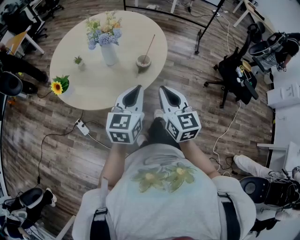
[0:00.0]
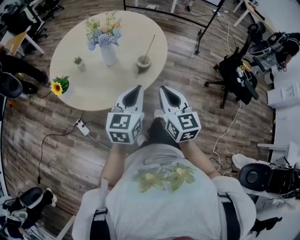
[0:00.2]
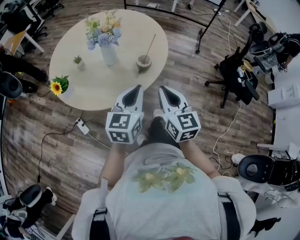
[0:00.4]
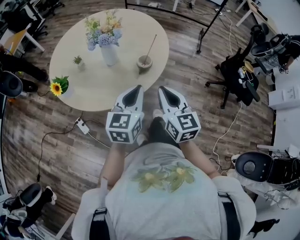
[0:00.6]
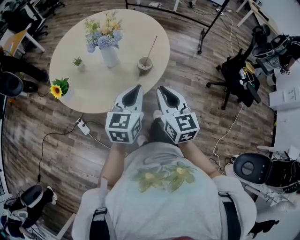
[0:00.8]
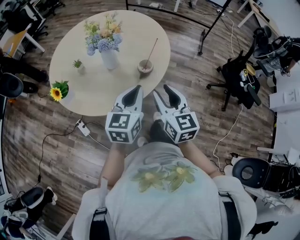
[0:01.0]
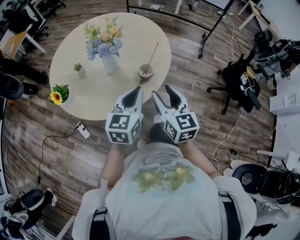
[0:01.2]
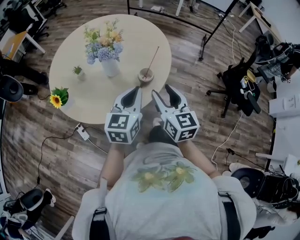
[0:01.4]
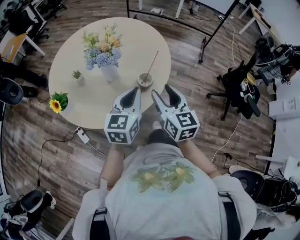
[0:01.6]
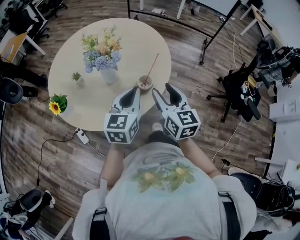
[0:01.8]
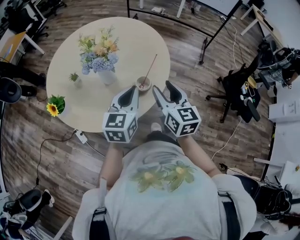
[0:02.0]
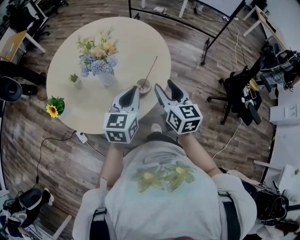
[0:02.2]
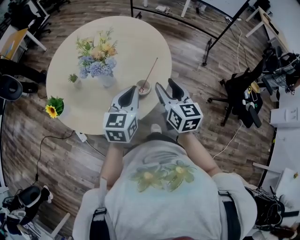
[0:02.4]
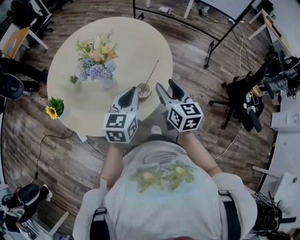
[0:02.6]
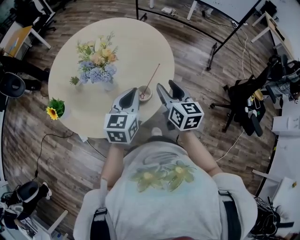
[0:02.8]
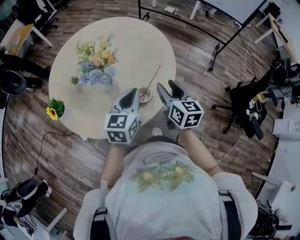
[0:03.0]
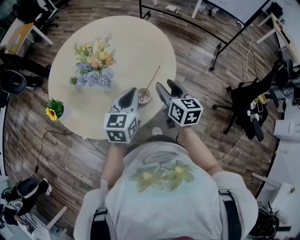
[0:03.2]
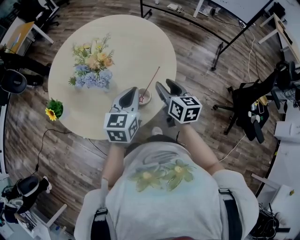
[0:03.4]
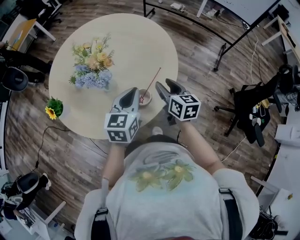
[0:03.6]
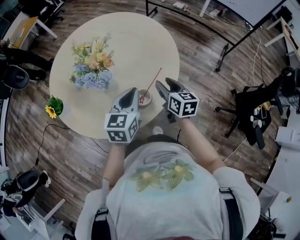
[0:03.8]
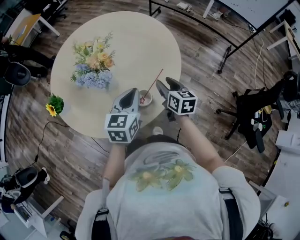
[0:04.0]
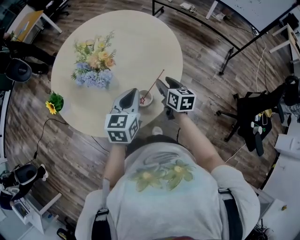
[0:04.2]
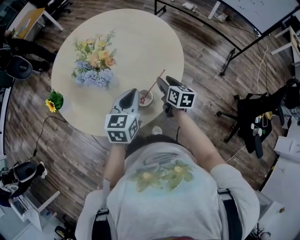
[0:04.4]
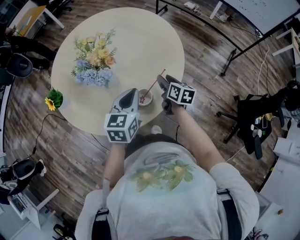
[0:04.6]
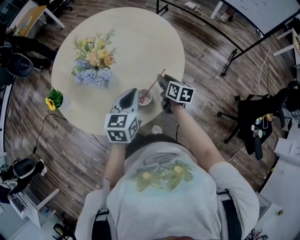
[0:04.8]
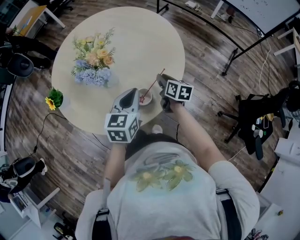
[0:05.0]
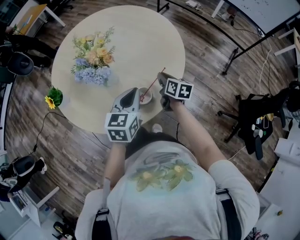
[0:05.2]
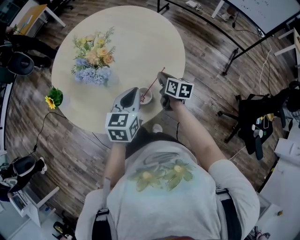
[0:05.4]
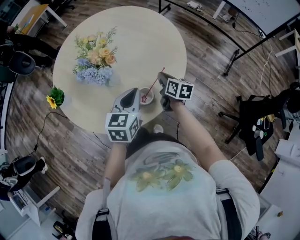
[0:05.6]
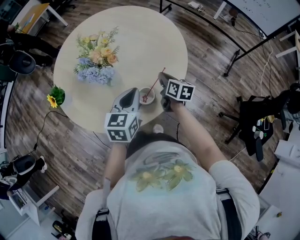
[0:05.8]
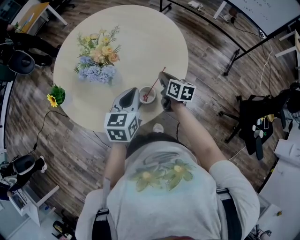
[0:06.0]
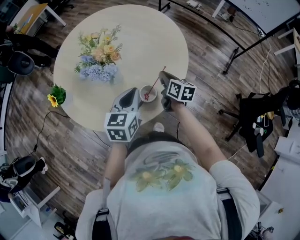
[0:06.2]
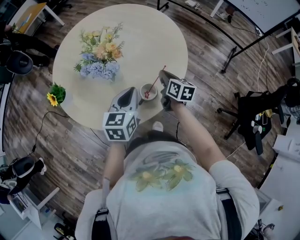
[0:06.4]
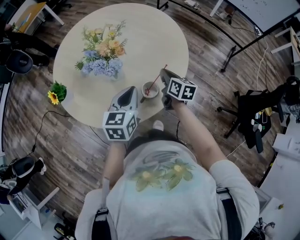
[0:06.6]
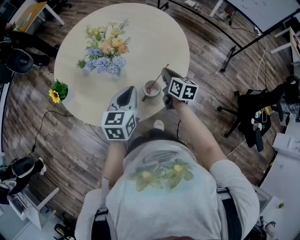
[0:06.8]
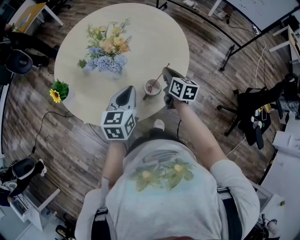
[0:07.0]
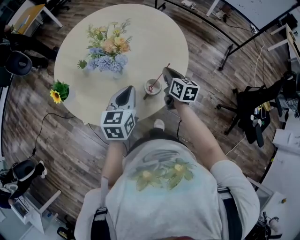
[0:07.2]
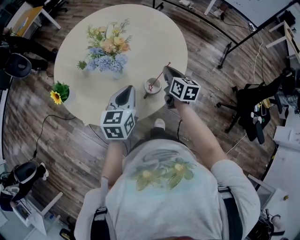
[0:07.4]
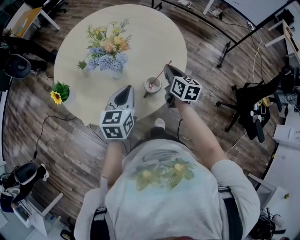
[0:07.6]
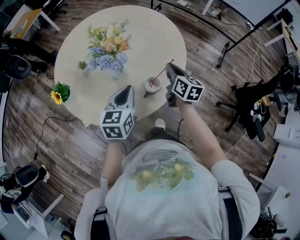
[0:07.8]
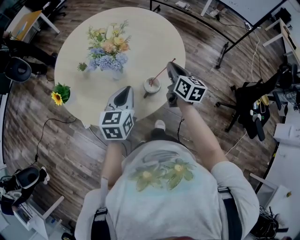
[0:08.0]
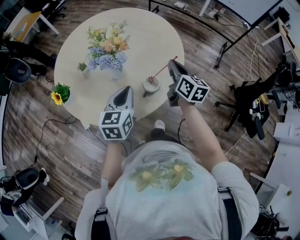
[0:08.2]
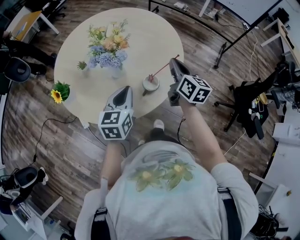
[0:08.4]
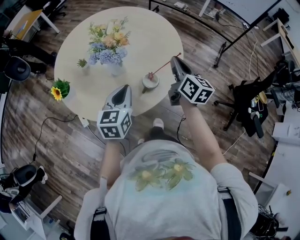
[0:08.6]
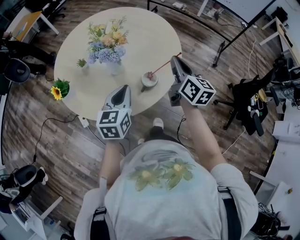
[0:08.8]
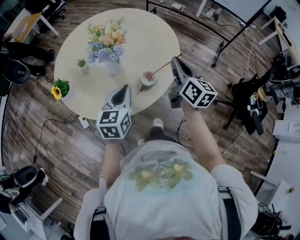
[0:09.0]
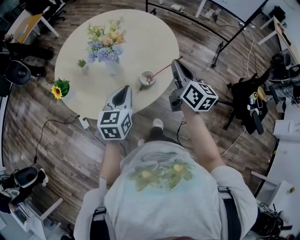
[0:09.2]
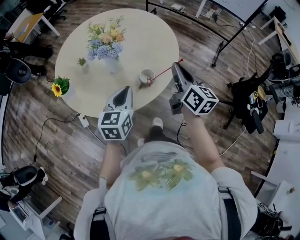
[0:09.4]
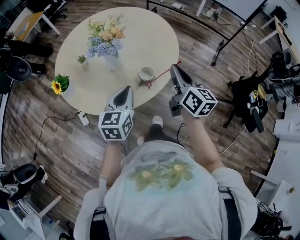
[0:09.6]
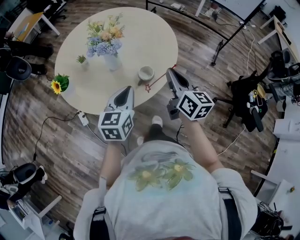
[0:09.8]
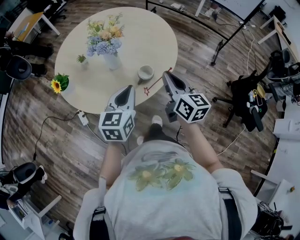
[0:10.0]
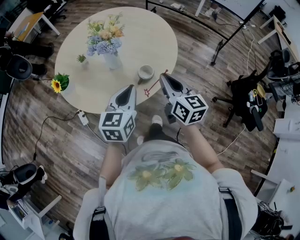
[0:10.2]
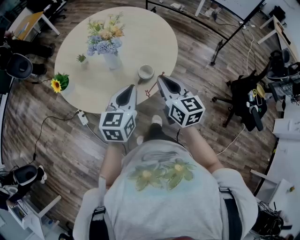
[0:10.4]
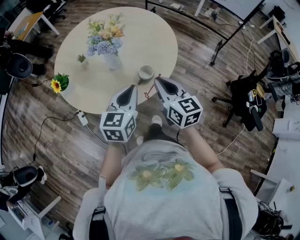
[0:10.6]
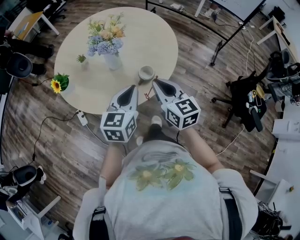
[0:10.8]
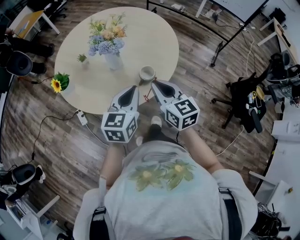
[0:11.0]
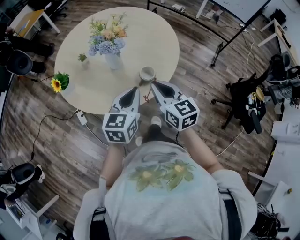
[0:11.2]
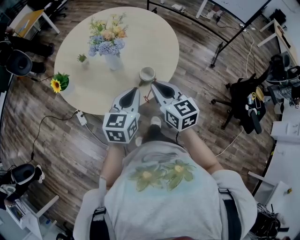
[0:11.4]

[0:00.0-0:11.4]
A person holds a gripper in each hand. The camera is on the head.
0:00.0 to 0:01.4: The grippers both shift forward by about 10 cm. The right gripper opens.
0:01.4 to 0:02.8: Both grippers move forward, approximately 15 cm.
0:02.8 to 0:04.2: The right gripper travels downward and forward by about 15 cm. The left gripper moves about 5 cm.
0:04.2 to 0:05.6: The right gripper ends up roughly 5 cm from where it was, and closes its fingers.
0:05.6 to 0:07.2: The right gripper travels upward by about 5 cm. The left gripper goes about 10 cm to the left.
0:07.2 to 0:08.6: The right gripper goes roughly 15 cm upward.
0:08.6 to 0:10.0: The left gripper is displaced backward by some 5 cm. The right gripper goes approximately 15 cm backward.
0:10.0 to 0:11.4: The right gripper goes roughly 5 cm to the left.

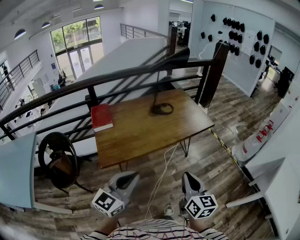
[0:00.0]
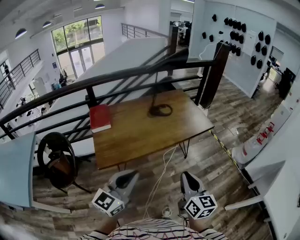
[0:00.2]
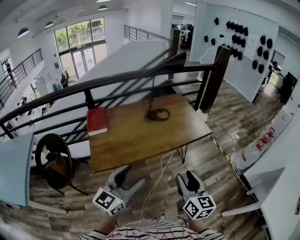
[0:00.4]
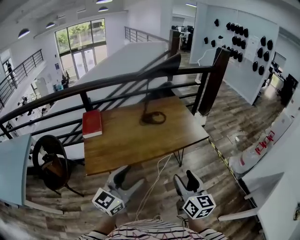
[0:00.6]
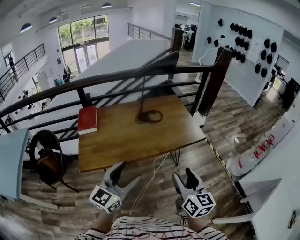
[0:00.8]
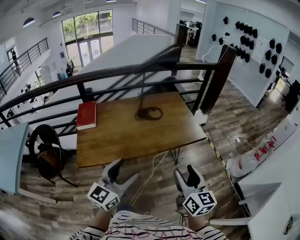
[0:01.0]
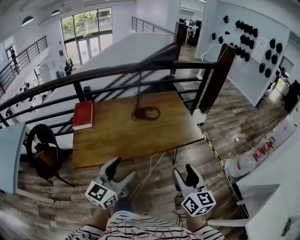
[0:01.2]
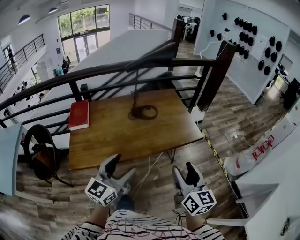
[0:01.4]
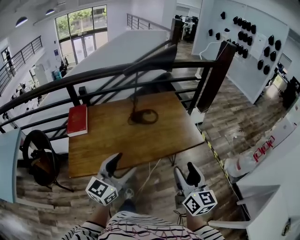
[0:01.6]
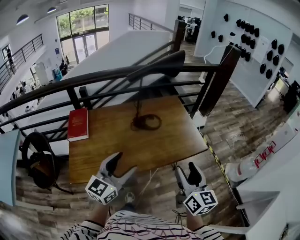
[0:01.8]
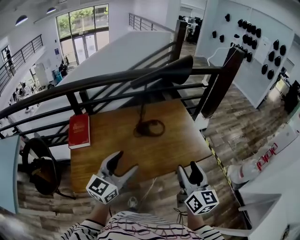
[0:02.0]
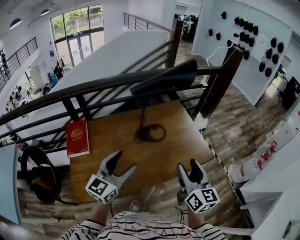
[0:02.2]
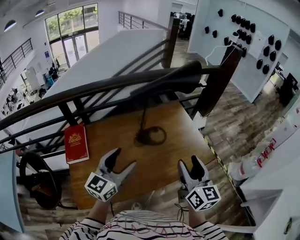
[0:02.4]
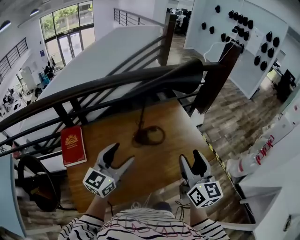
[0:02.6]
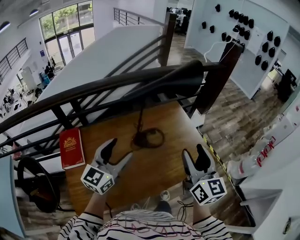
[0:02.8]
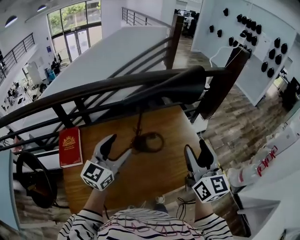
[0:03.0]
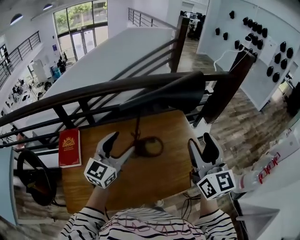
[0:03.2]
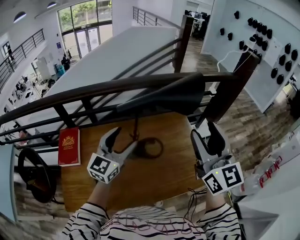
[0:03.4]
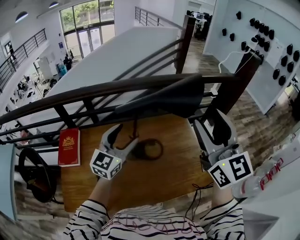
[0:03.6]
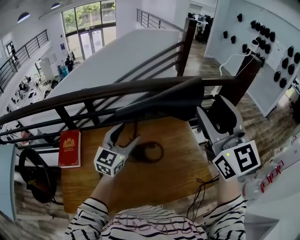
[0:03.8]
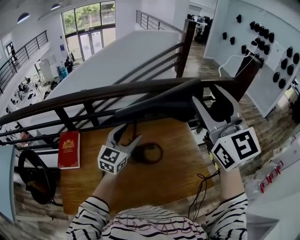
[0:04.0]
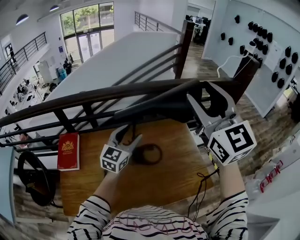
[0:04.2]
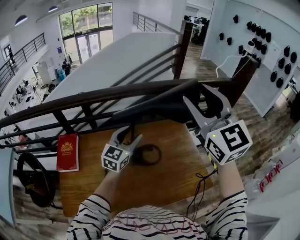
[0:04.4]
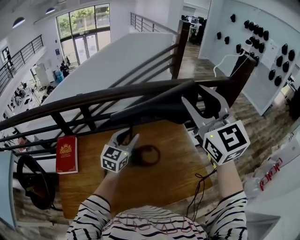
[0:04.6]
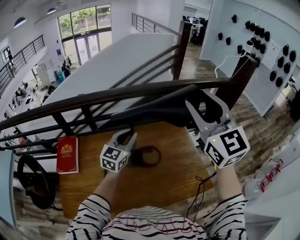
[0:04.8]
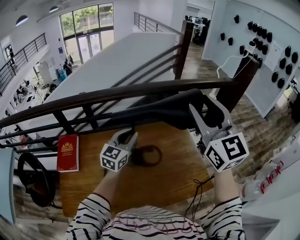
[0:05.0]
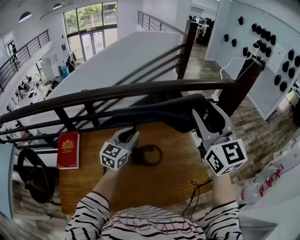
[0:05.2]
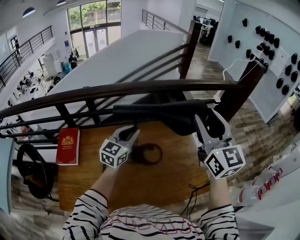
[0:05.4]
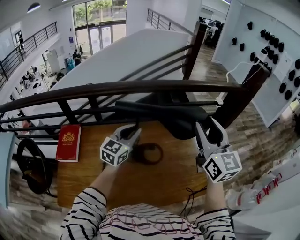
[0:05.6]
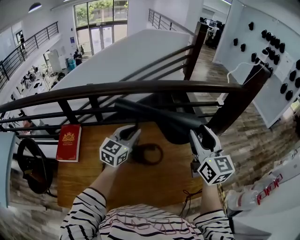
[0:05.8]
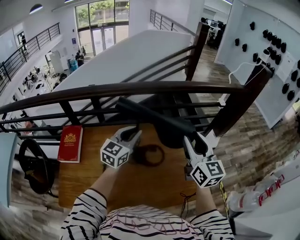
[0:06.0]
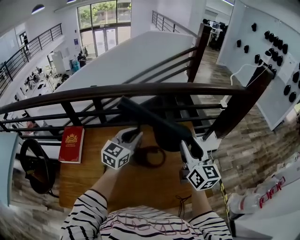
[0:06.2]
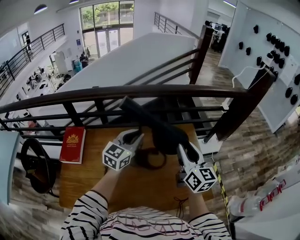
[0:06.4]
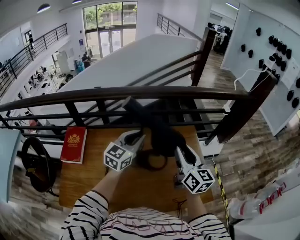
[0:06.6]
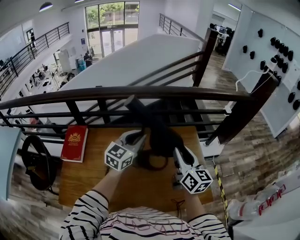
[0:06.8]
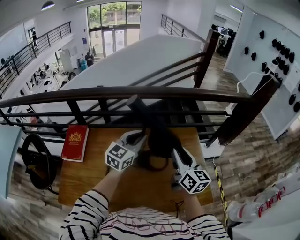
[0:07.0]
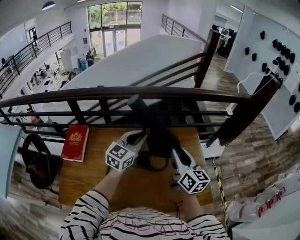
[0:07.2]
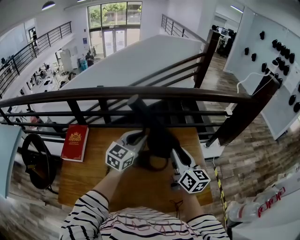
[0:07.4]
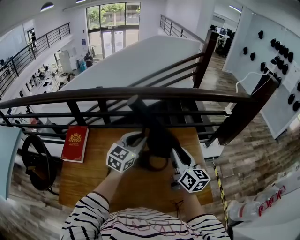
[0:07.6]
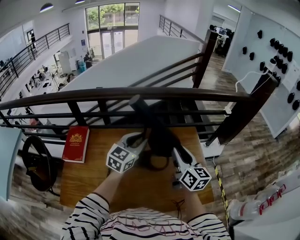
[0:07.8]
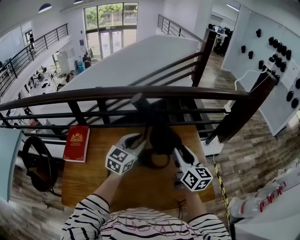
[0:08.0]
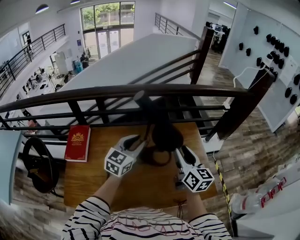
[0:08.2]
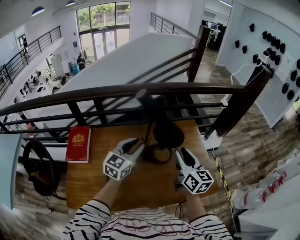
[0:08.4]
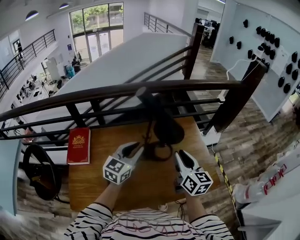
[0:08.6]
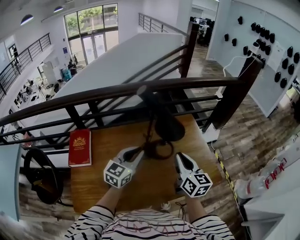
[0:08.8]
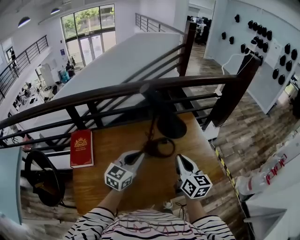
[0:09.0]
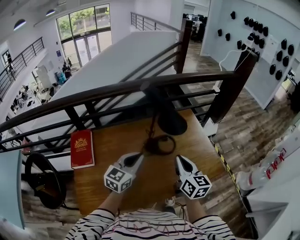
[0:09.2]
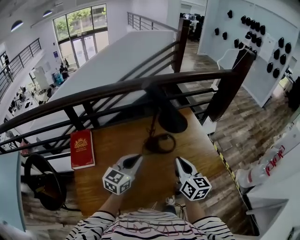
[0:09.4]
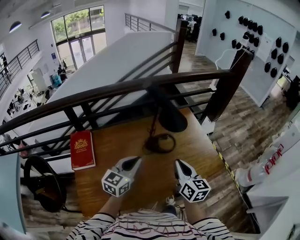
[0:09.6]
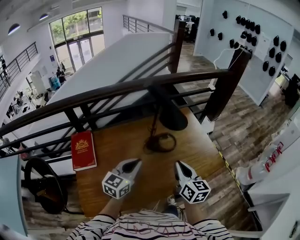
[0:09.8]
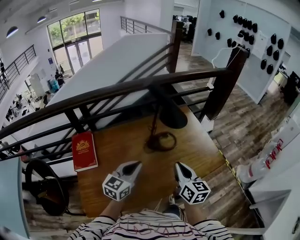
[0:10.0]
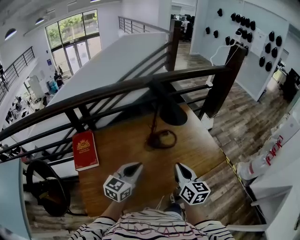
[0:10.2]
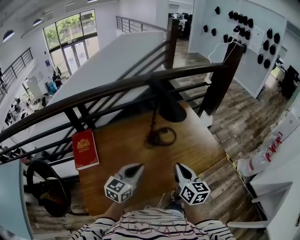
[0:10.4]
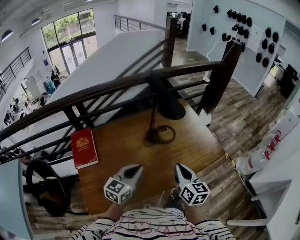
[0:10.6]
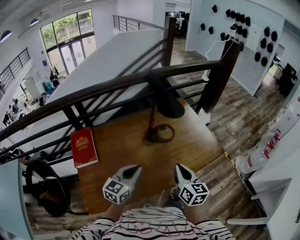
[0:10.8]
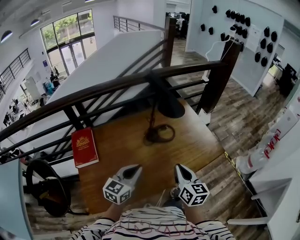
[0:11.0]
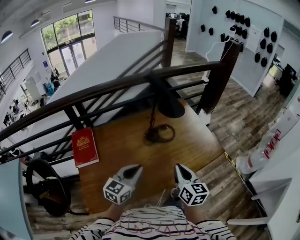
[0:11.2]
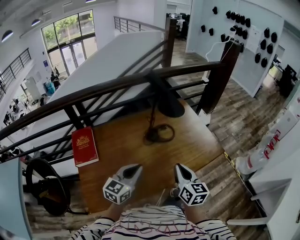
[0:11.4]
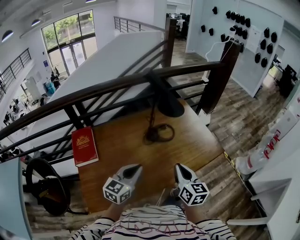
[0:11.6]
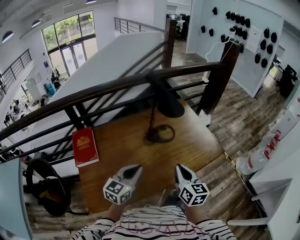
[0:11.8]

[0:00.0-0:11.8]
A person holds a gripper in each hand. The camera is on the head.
0:00.0 to 0:01.4: Both grippers travel together forward and to the right, about 30 cm. The left gripper opens up, while the right gripper opens its fingers.
0:01.4 to 0:03.0: The pair of grippers is taken forward, some 40 cm.
0:03.0 to 0:04.4: The left gripper shifts approximately 20 cm forward and to the right; the right gripper shifts about 25 cm upward and forward, and turns by approximately 30 degrees.
0:04.4 to 0:06.0: The right gripper heads downward, covering about 20 cm, and changes its angle by about 30 degrees. The left gripper closes up.
0:06.0 to 0:07.4: The right gripper goes approximately 10 cm downward and to the left, and changes its angle by some 20 degrees.
0:07.4 to 0:08.8: The grippers both shift backward by about 15 cm. The right gripper closes.
0:08.8 to 0:10.4: The grippers both shift backward by roughly 15 cm.
0:10.4 to 0:11.8: There are only small adjustments of the grippers.

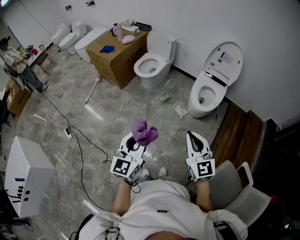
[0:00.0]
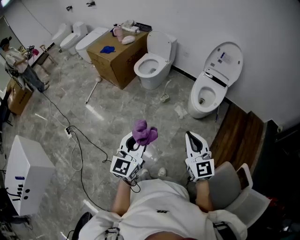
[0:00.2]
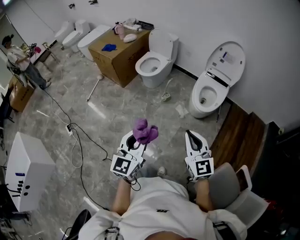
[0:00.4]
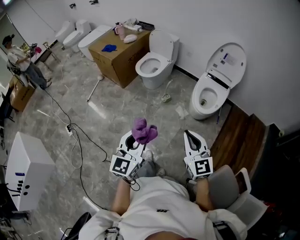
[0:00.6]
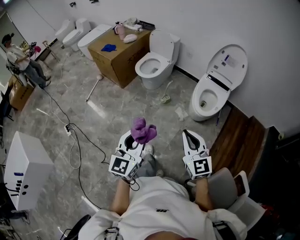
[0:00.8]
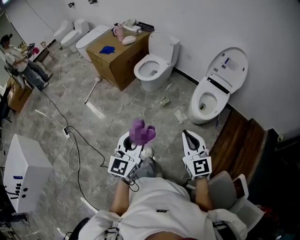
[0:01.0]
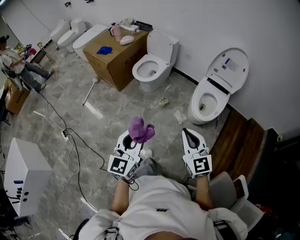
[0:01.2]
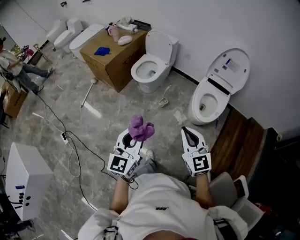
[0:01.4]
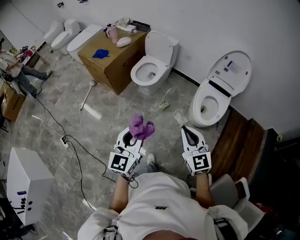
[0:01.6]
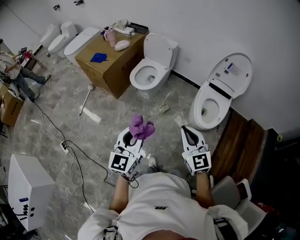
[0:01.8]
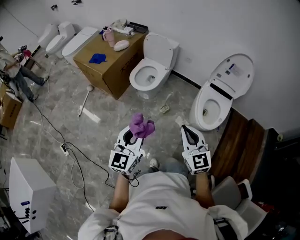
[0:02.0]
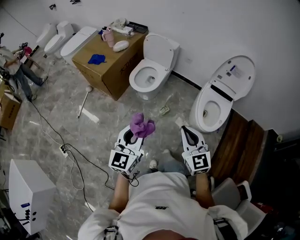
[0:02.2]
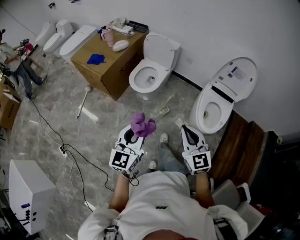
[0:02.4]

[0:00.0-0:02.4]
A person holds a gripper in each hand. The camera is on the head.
0:00.0 to 0:01.2: The grippers both shift forward by approximately 15 cm.
0:01.2 to 0:02.4: The left gripper travels forward by about 25 cm; the right gripper travels forward and to the left by about 25 cm.
